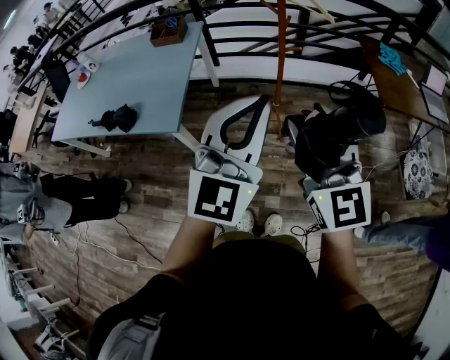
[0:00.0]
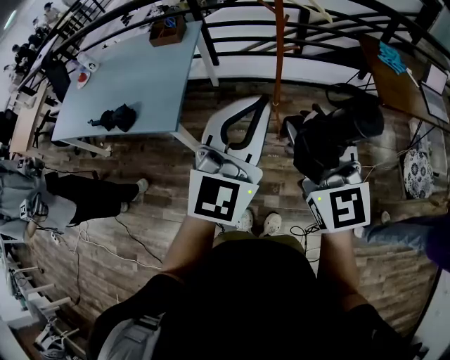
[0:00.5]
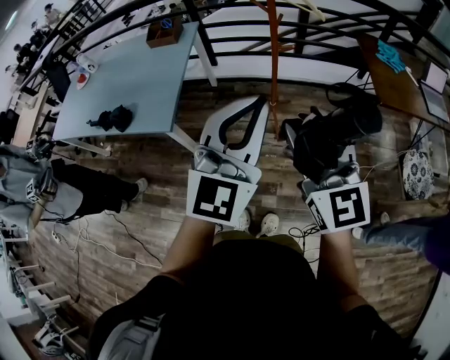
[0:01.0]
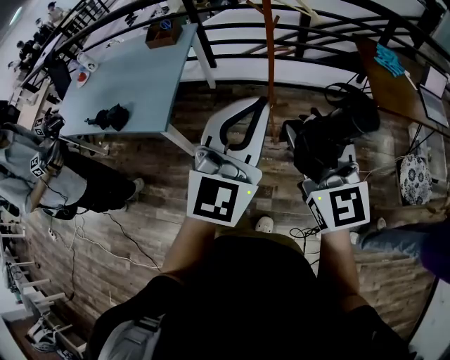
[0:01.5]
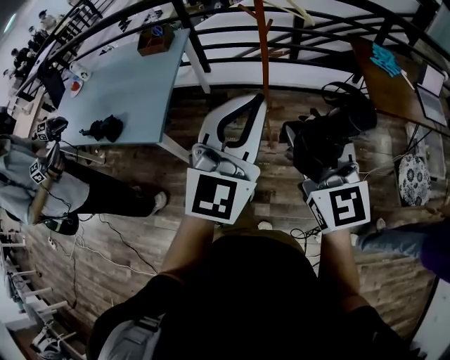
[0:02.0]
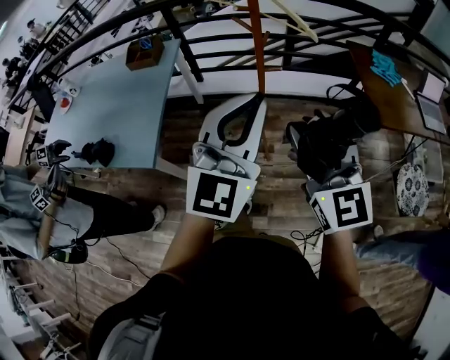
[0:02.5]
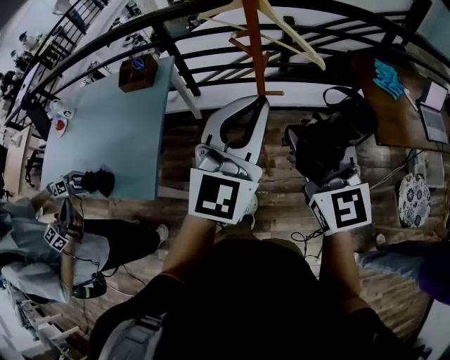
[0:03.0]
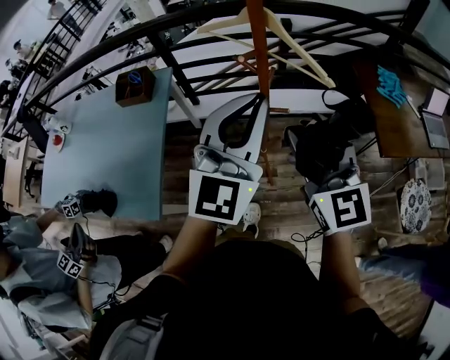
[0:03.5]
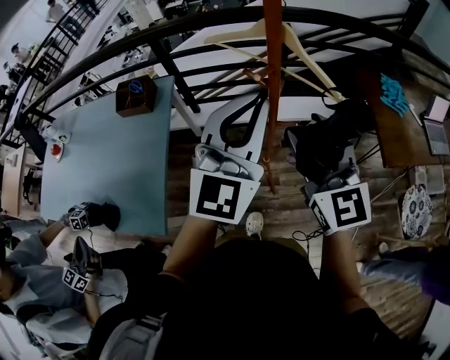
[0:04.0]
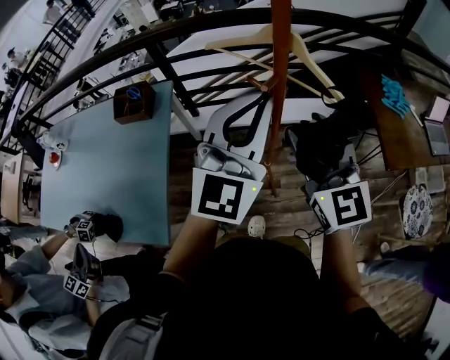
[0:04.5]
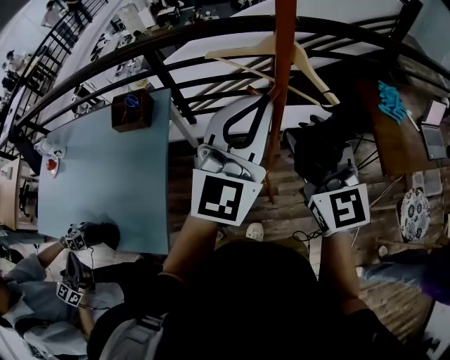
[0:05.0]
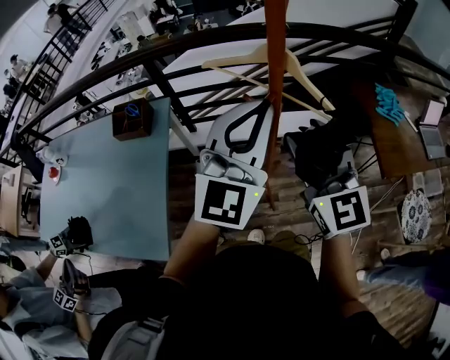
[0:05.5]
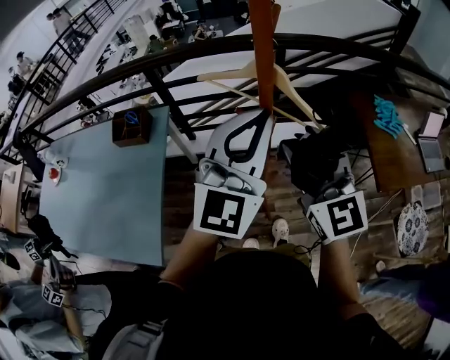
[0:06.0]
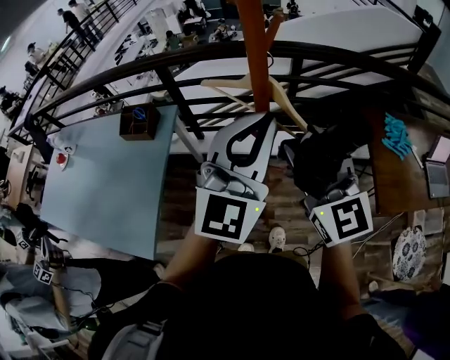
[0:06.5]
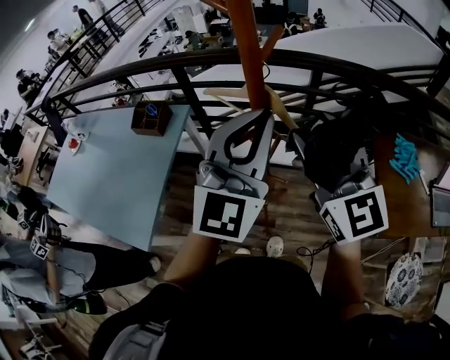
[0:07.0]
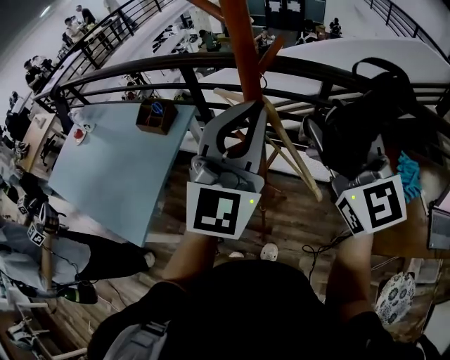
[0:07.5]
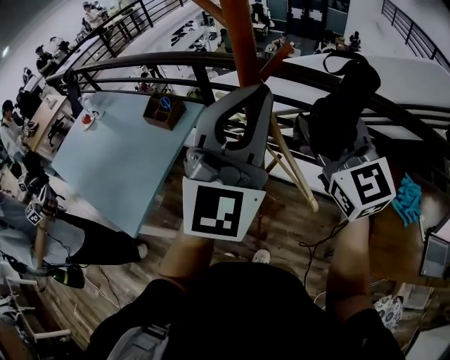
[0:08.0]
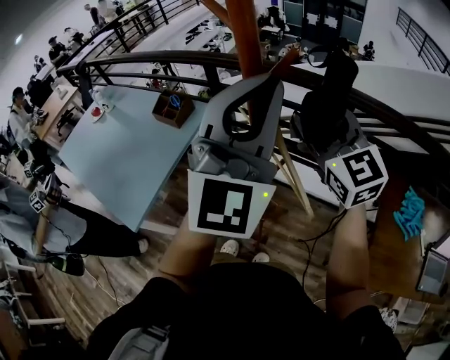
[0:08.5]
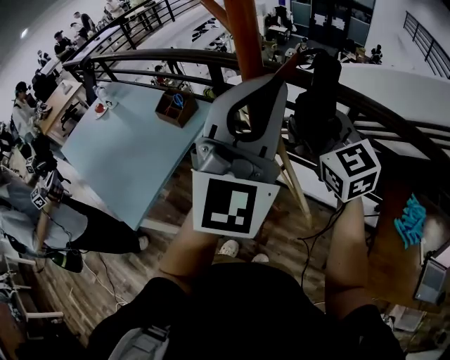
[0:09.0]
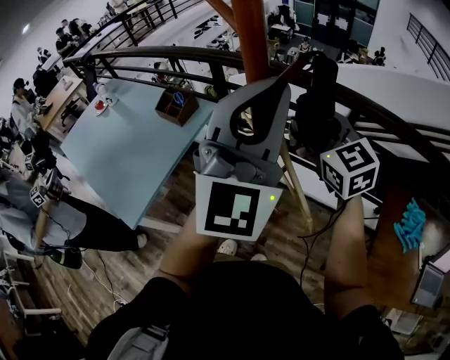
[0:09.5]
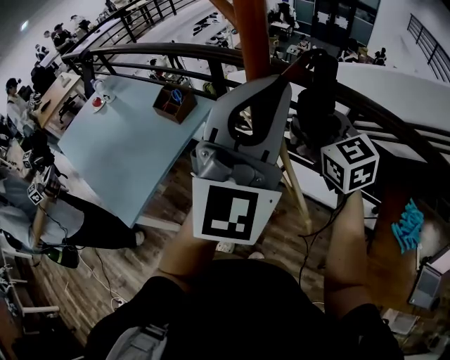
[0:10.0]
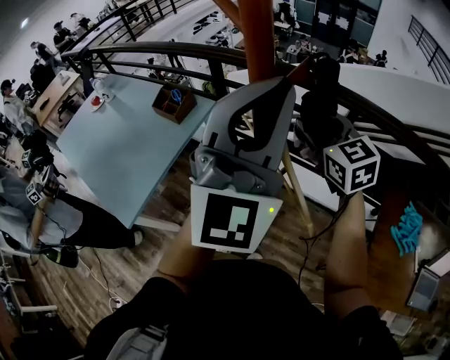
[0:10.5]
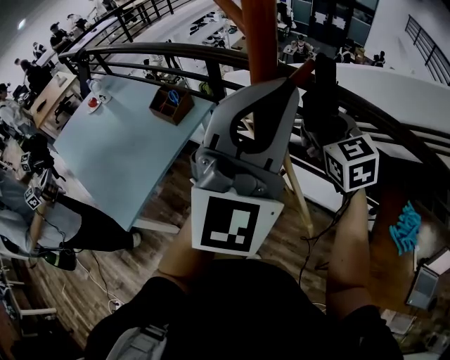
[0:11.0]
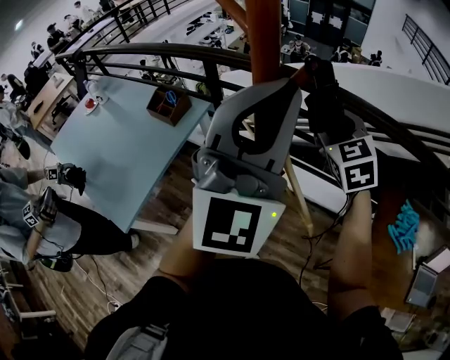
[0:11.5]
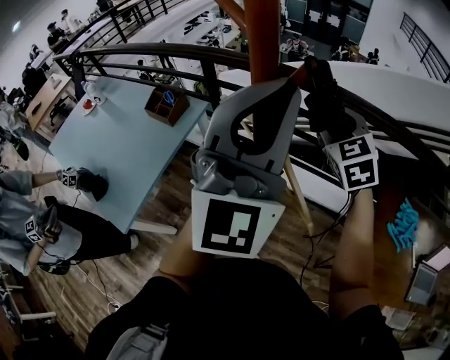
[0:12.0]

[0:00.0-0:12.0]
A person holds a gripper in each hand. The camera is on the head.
0:00.0 to 0:02.0: Both grippers move to the right, roughly 10 cm.
0:02.0 to 0:04.0: Both grippers move forward, roughly 35 cm.
0:04.0 to 0:06.0: Both grippers move forward, roughly 5 cm.
0:06.0 to 0:08.0: The right gripper moves approximately 20 cm, and turns by roughly 30 degrees. Meanwhile the left gripper moves some 15 cm, and turns by some 30 degrees.
0:08.0 to 0:10.0: The right gripper goes about 15 cm forward and downward.
0:10.0 to 0:12.0: The right gripper goes some 5 cm to the right, and changes its angle by approximately 30 degrees.

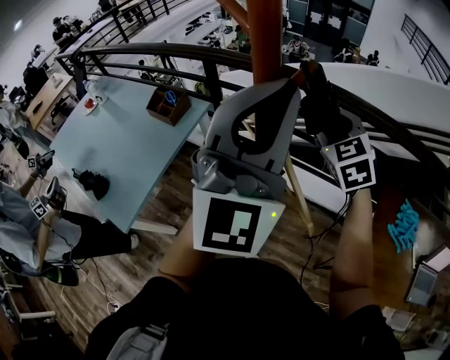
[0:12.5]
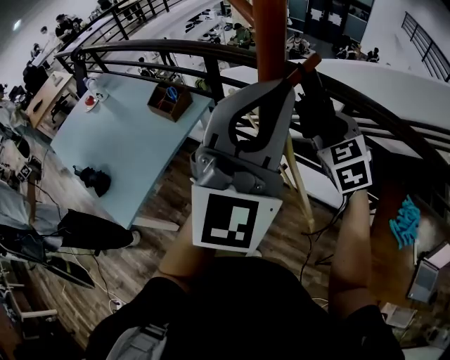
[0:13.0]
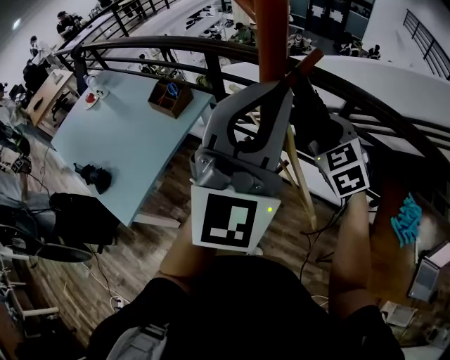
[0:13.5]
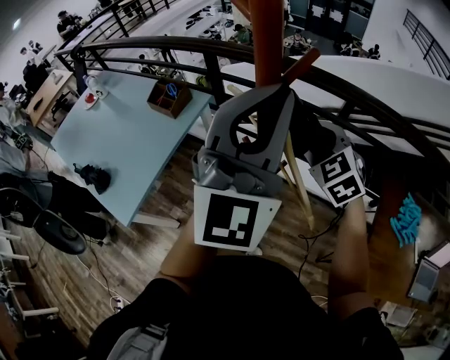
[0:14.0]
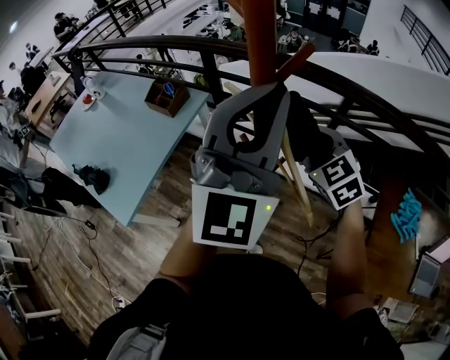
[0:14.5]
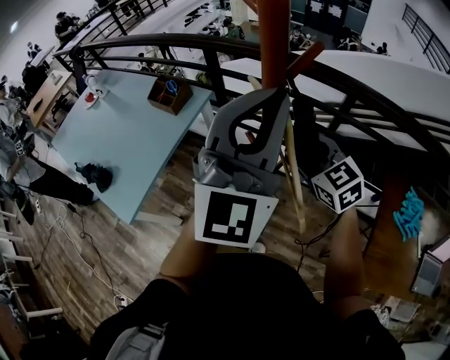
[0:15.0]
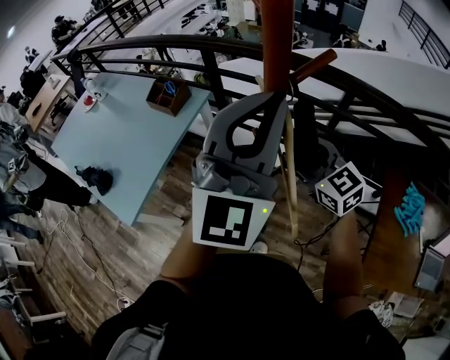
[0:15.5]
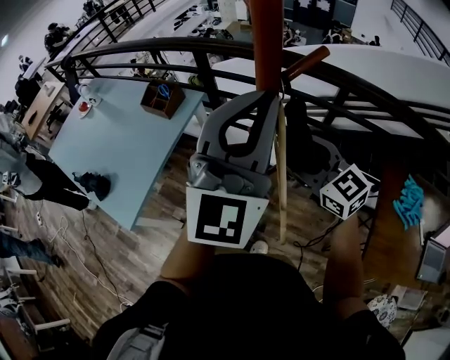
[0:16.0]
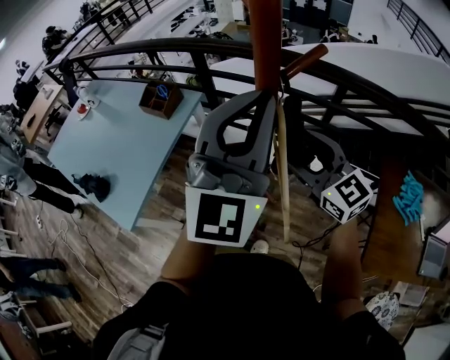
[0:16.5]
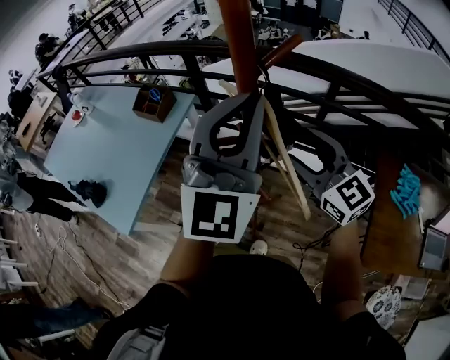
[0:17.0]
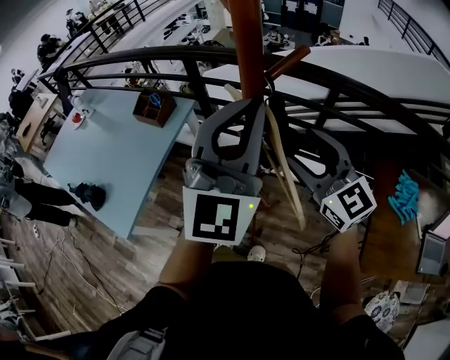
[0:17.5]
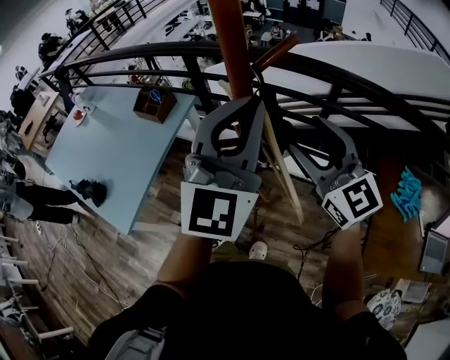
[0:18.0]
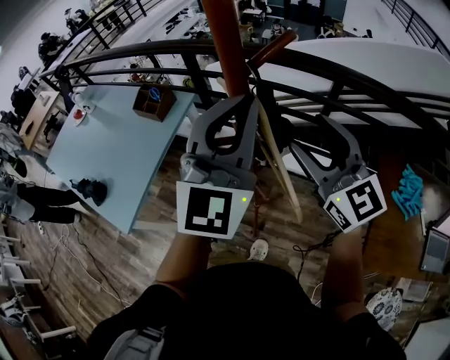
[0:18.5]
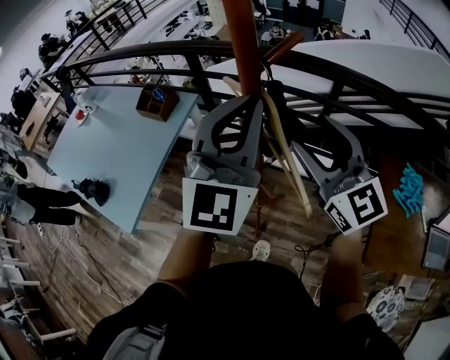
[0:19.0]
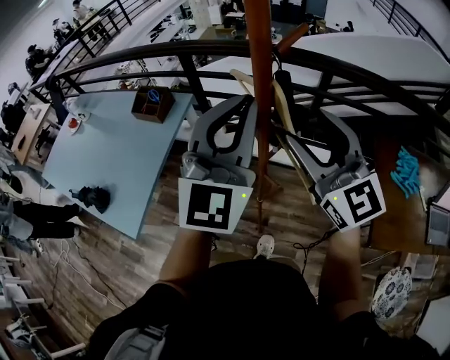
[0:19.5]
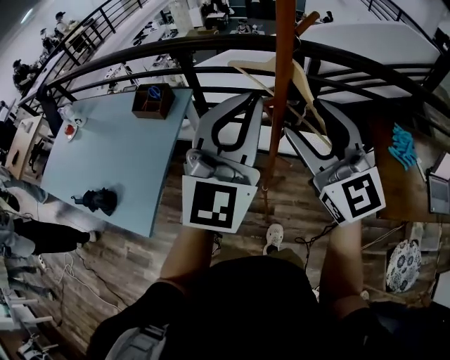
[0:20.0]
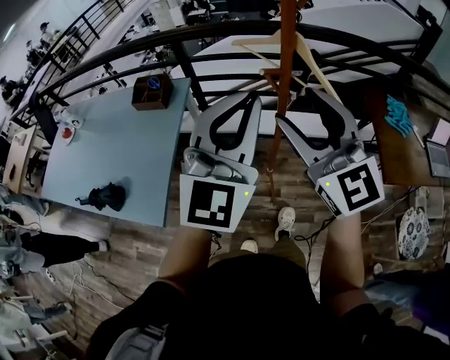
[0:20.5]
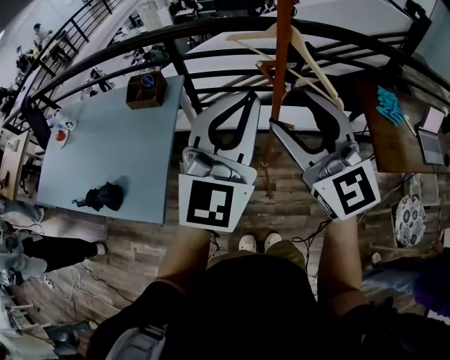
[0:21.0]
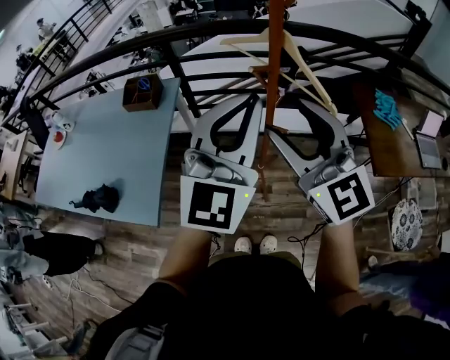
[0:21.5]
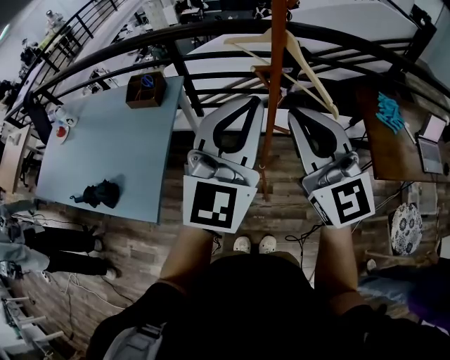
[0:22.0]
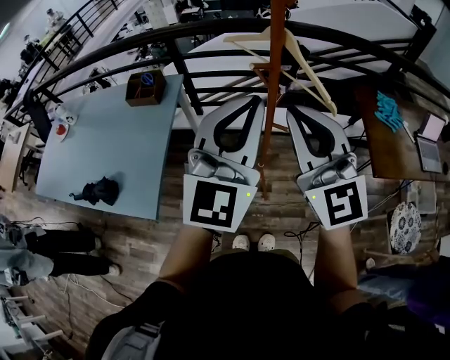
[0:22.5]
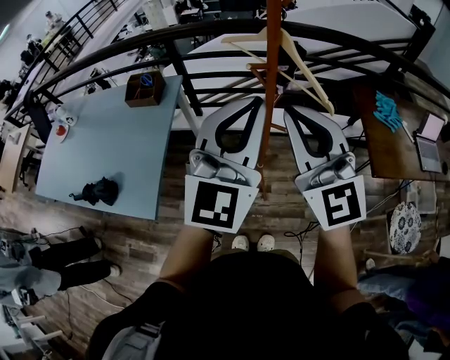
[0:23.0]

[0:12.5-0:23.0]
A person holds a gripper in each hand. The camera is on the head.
0:12.5 to 0:14.5: The right gripper moves downward and backward, approximately 10 cm.
0:14.5 to 0:16.5: The right gripper heads backward, covering roughly 5 cm, and rotates roughly 30 degrees.
0:16.5 to 0:19.0: The right gripper travels upward by roughly 10 cm.
0:19.0 to 0:21.0: Both grippers travel together backward and to the left, roughly 25 cm.
0:21.0 to 0:23.0: The right gripper closes its fingers.

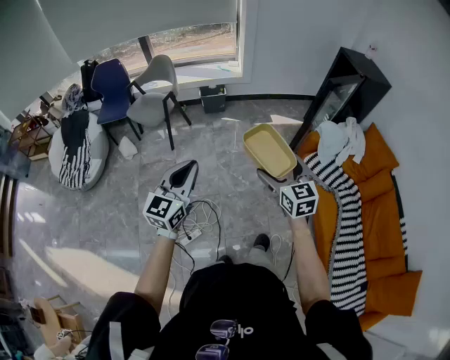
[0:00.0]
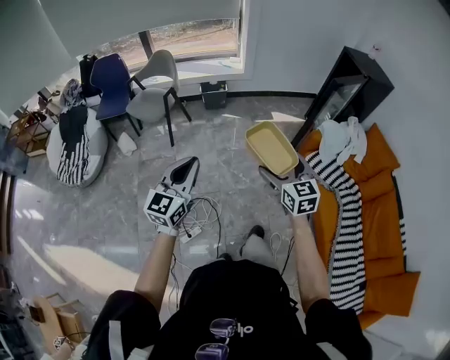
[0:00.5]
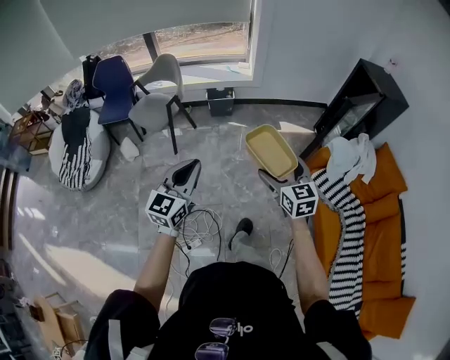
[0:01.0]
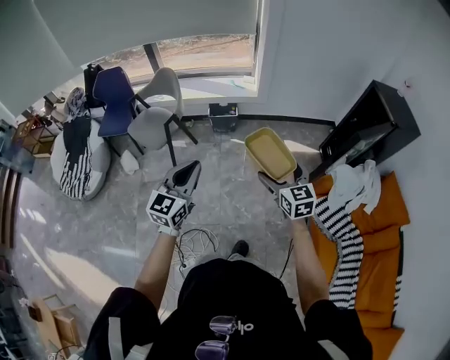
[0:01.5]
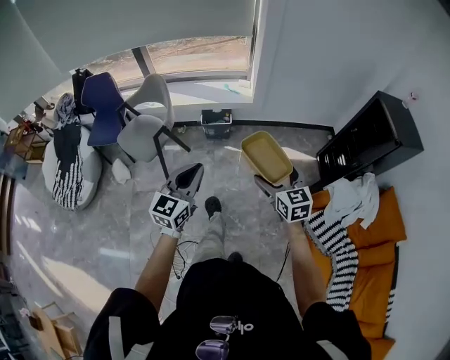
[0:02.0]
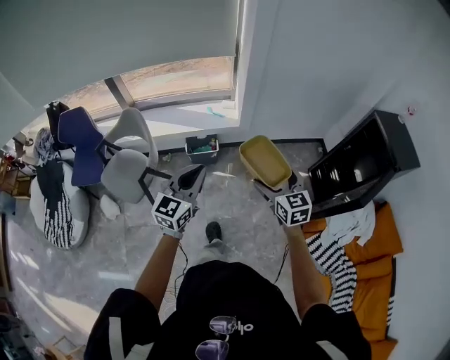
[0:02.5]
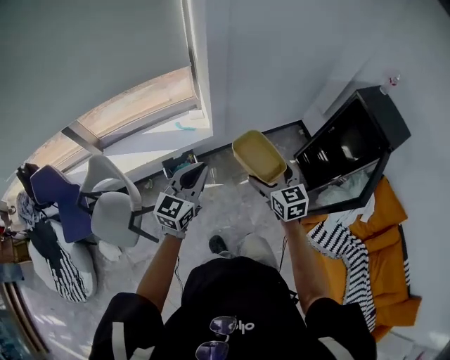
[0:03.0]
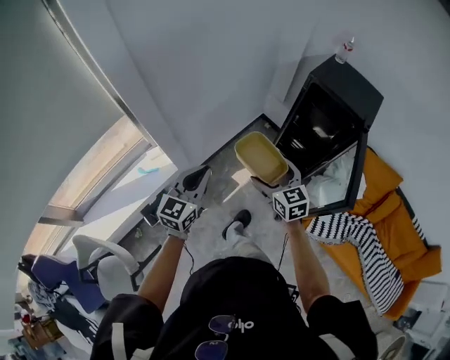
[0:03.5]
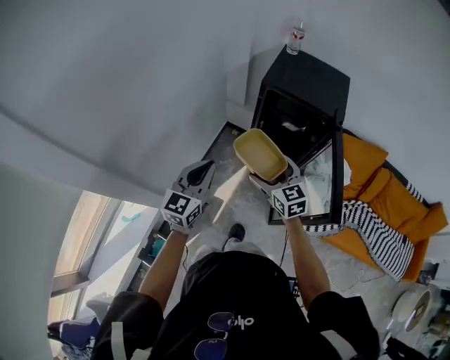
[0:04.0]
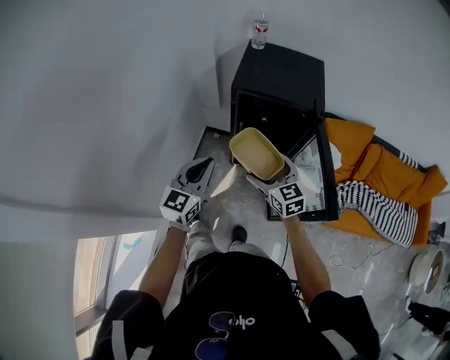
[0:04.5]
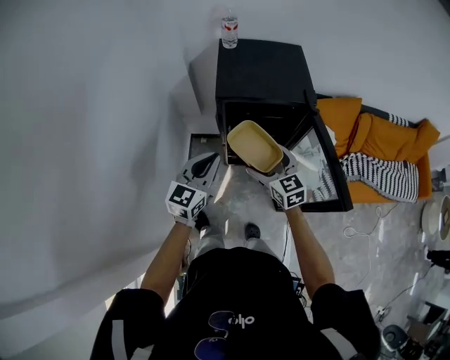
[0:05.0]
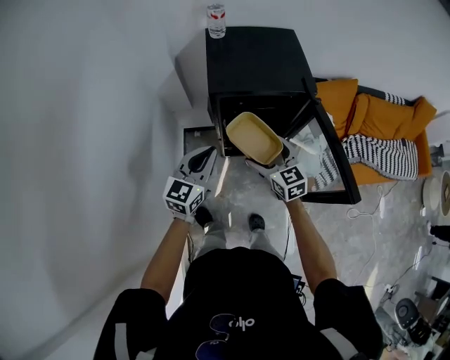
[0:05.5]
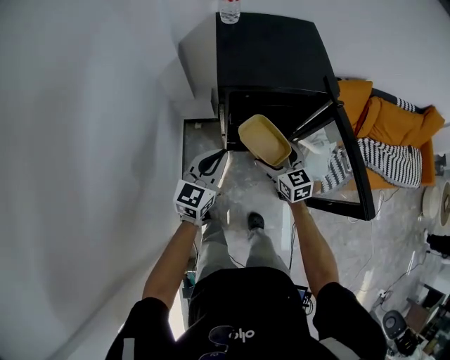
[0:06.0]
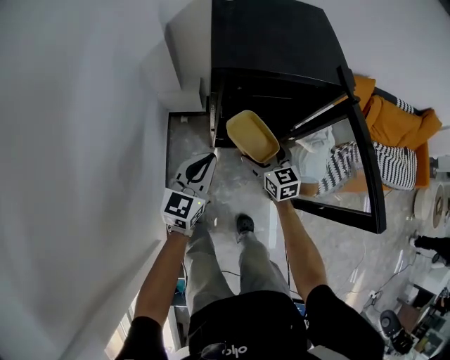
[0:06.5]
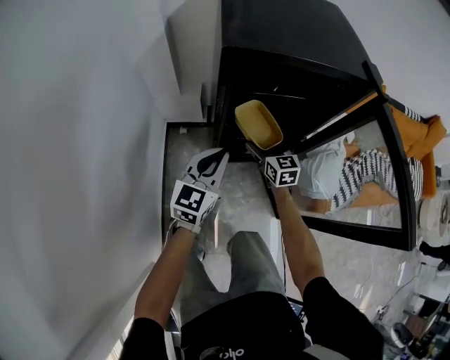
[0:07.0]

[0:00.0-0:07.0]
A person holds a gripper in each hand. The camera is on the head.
0:00.0 to 0:02.0: The pair of grippers is taken forward, approximately 50 cm.
0:02.0 to 0:03.5: The pair of grippers is taken approximately 60 cm. The right gripper turns by roughly 40 degrees. The left gripper turns by about 40 degrees.
0:03.5 to 0:05.0: The right gripper changes place by about 30 cm, and swivels approximately 40 degrees. Meanwhile the left gripper changes place by about 40 cm, and swivels some 50 degrees.
0:05.0 to 0:07.0: The right gripper shifts some 40 cm downward and forward, while the left gripper is displaced downward by roughly 30 cm.
